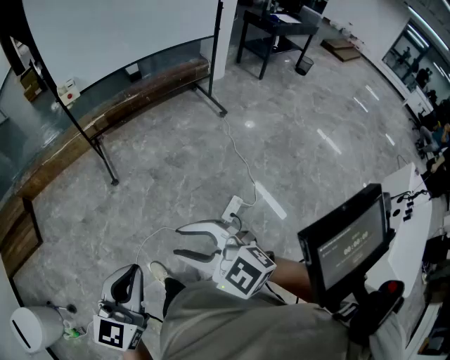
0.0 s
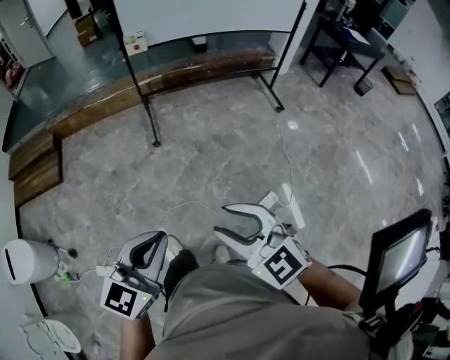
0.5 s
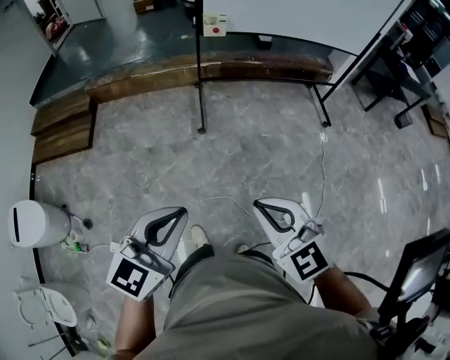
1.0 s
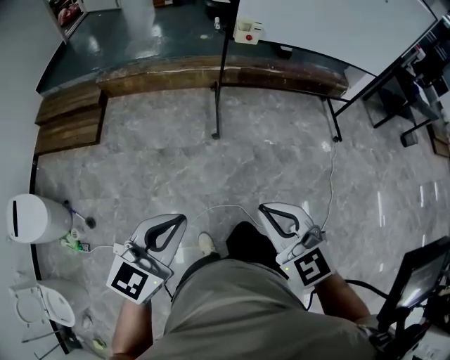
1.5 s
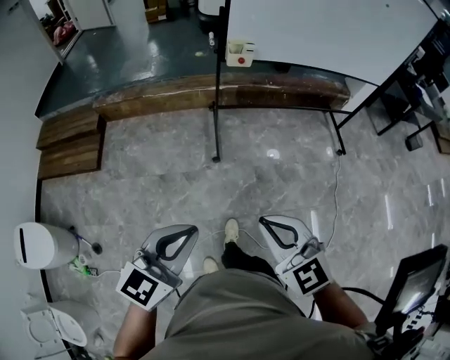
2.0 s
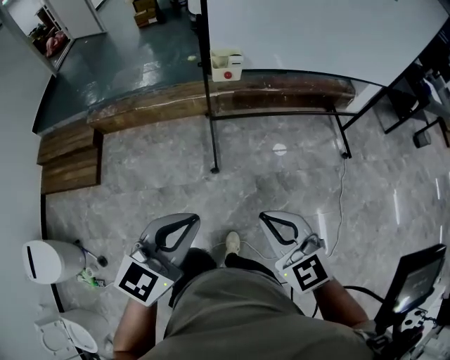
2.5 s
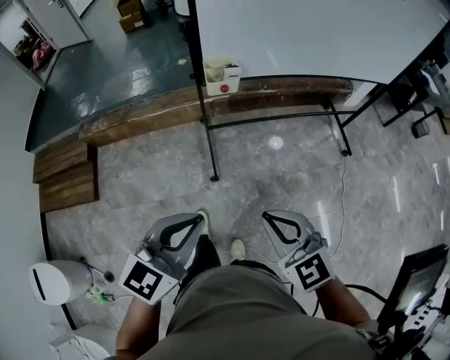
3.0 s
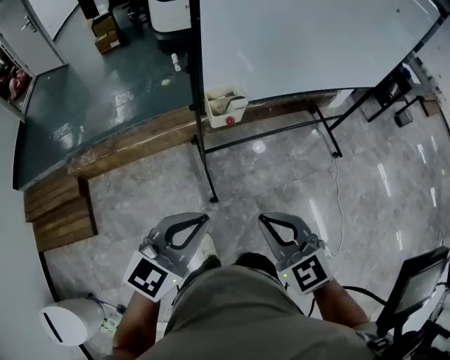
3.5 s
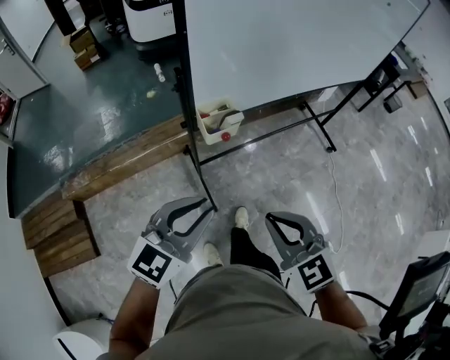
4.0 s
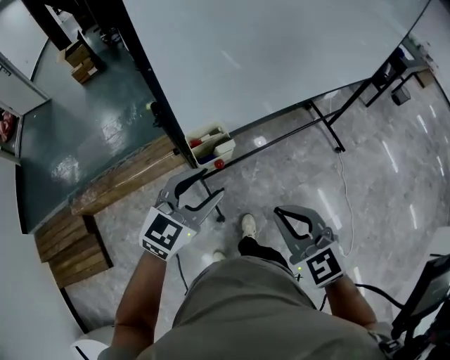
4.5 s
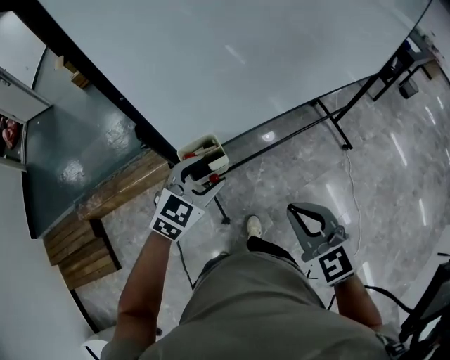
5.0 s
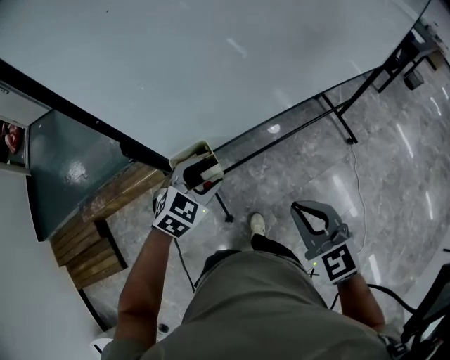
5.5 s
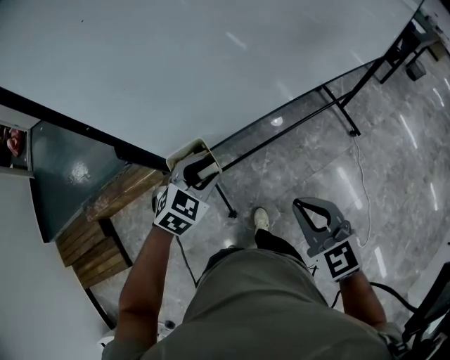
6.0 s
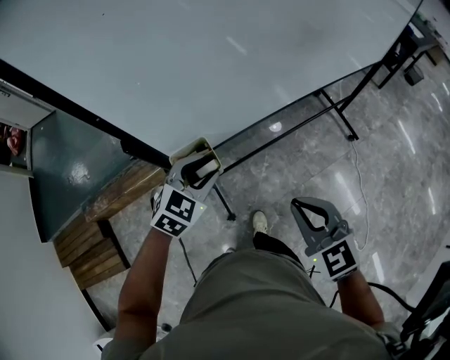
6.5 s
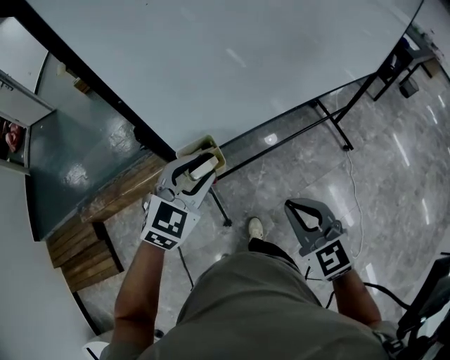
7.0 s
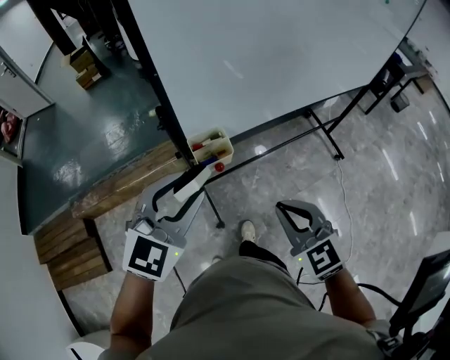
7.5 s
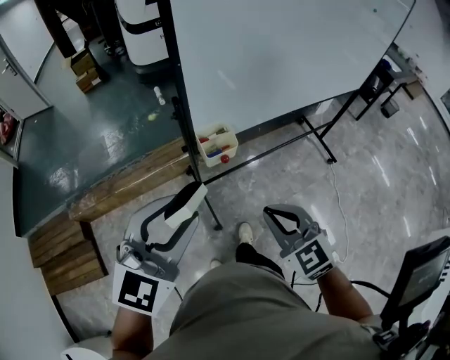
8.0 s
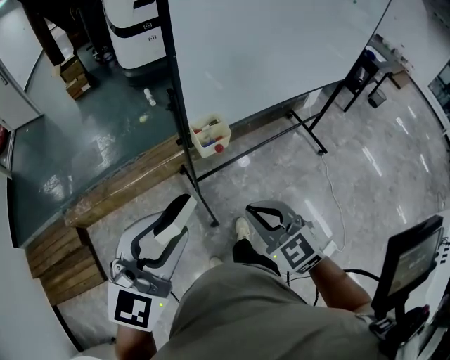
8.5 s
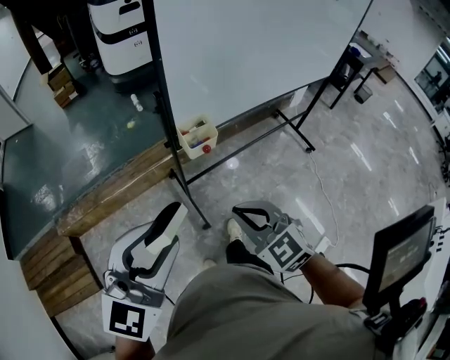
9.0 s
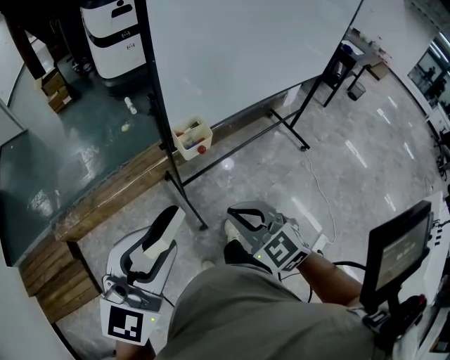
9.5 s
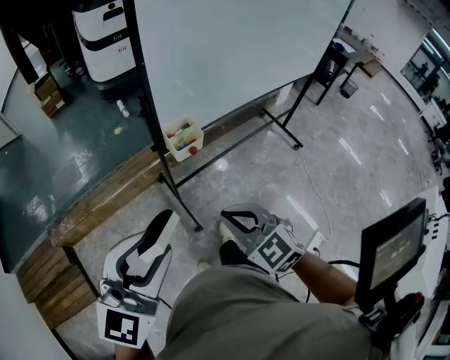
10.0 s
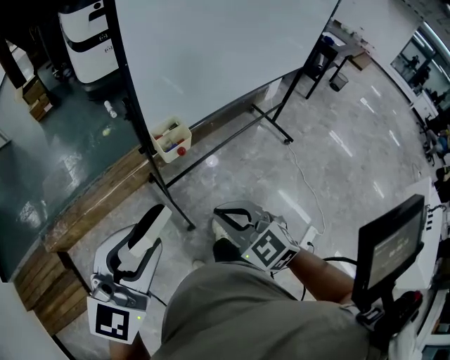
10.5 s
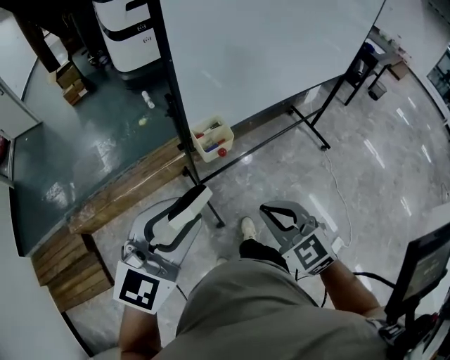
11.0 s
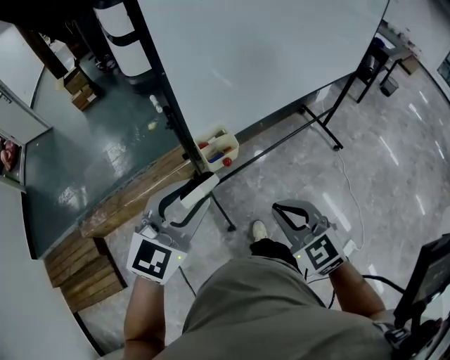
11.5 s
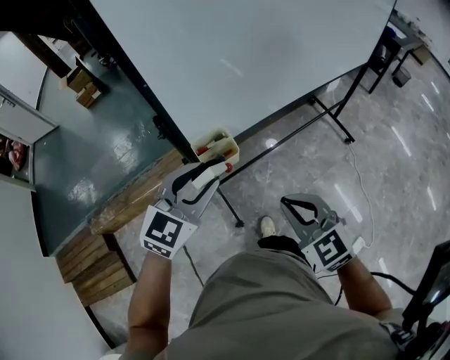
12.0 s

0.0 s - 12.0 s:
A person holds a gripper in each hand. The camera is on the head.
0.0 s - 2.0 s: Both grippers move forward and to the left, approximately 40 cm. The right gripper closes up.
2.0 s - 4.0 s: The pair of grippers is taken forward, about 50 cm. The right gripper rotates some 20 degrees, while the left gripper changes its angle by roughly 20 degrees.
4.0 s - 6.0 s: The right gripper shifts some 25 cm forward and to the right; the left gripper travels forward and downward by roughly 30 cm, tilts its fingers approximately 30 degrees downward, and opens up.
6.0 s - 8.0 s: The right gripper goes approximately 20 cm backward and to the left, while the left gripper heads backward, upward and to the left, covering about 35 cm, and angles its fingers upward, by some 30 degrees.
8.0 s - 10.0 s: The left gripper travels backward by about 10 cm. The right gripper goes roughly 10 cm backward and to the left.
10.0 s - 12.0 s: The left gripper heads forward and downward, covering roughly 25 cm. The right gripper is displaced forward and to the right by approximately 15 cm.

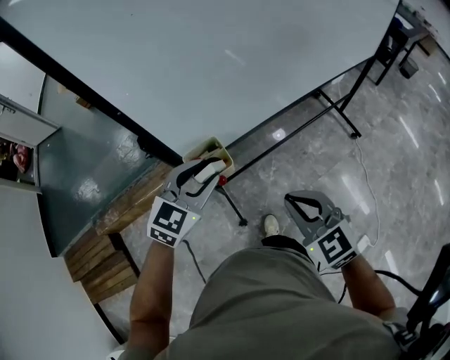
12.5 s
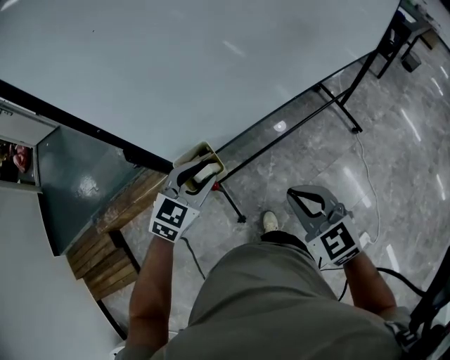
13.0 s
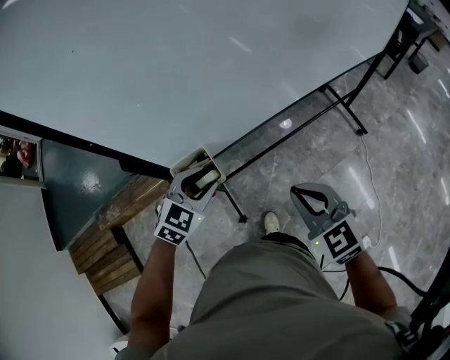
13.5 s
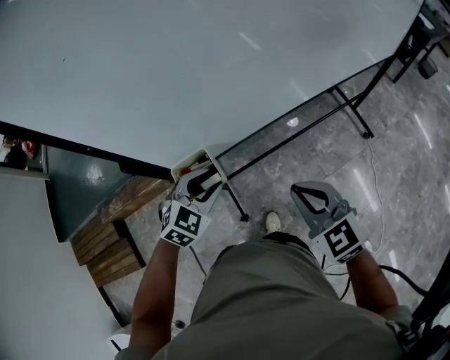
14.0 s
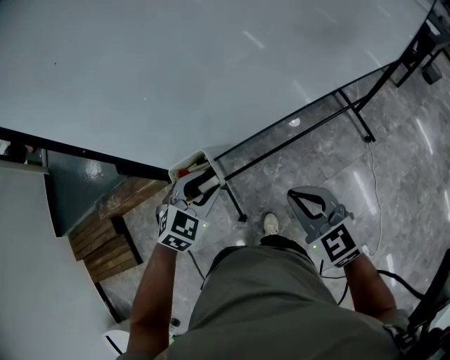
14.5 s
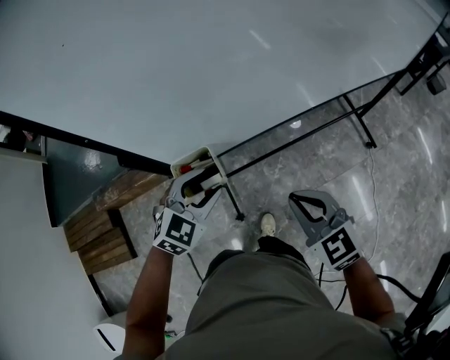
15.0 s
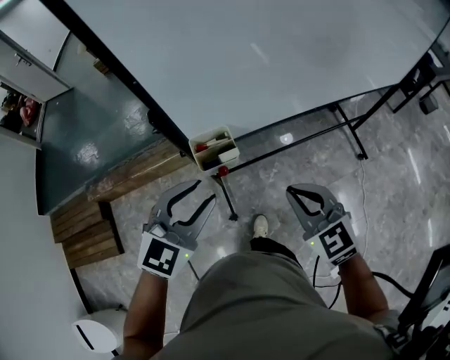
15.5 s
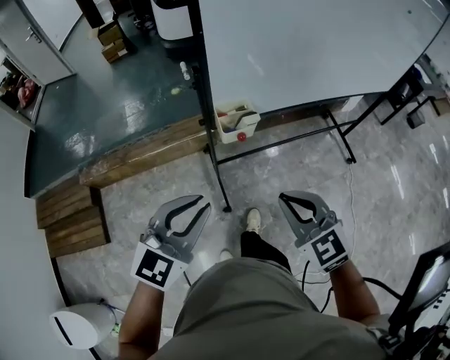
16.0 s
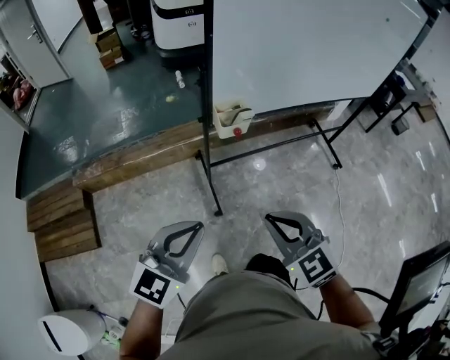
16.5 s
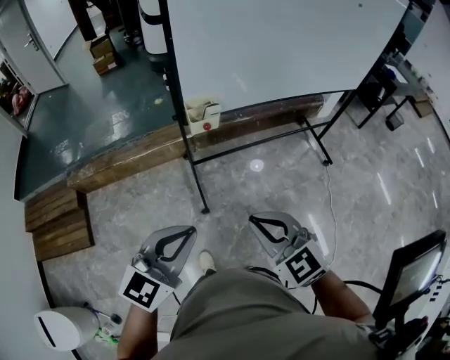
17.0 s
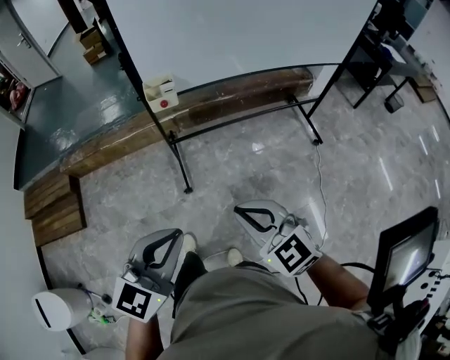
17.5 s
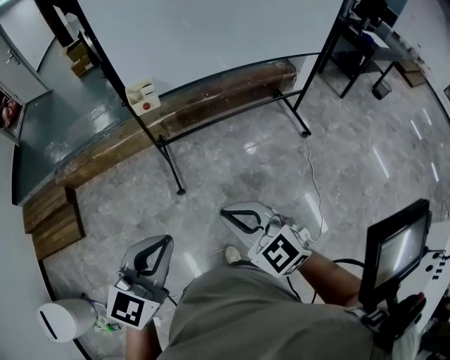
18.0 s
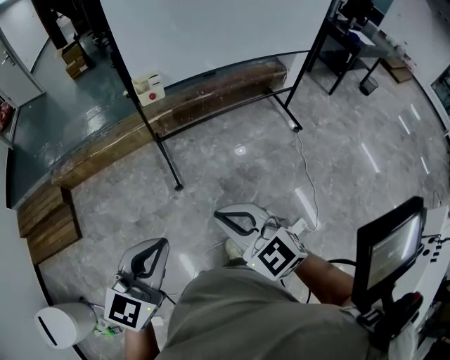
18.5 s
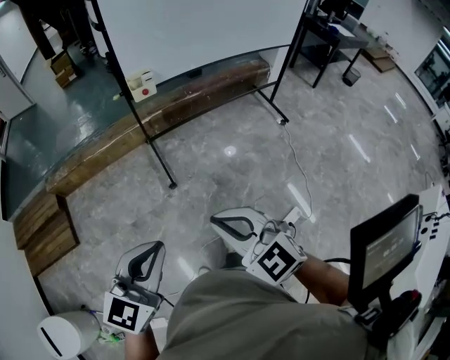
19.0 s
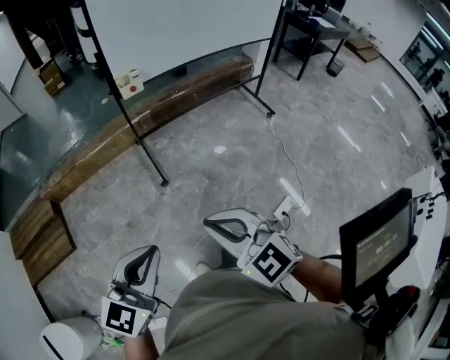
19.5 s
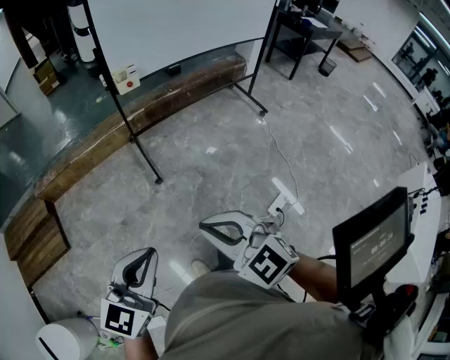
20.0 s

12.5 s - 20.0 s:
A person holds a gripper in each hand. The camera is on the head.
12.5 s - 14.5 s: The left gripper is displaced downward by about 10 cm. The right gripper travels forward and to the right by some 10 cm.
14.5 s - 16.5 s: The grippers both shift backward and to the left by approximately 40 cm. The left gripper points its fingers some 30 degrees further upward, and closes.
16.5 s - 18.0 s: The grippers both shift to the right and backward by approximately 30 cm.
18.0 s - 20.0 s: The two grippers go roughly 30 cm backward and to the left.

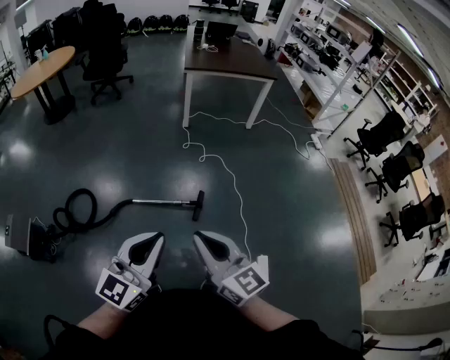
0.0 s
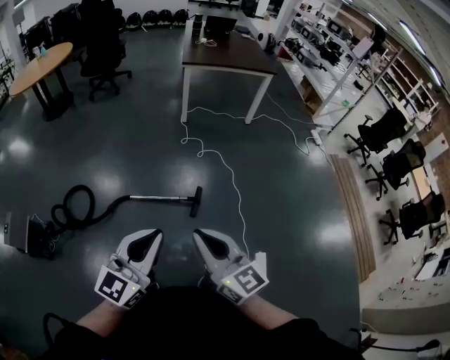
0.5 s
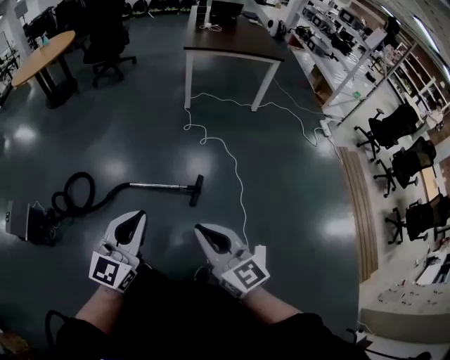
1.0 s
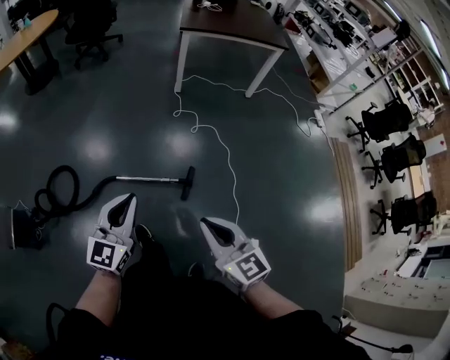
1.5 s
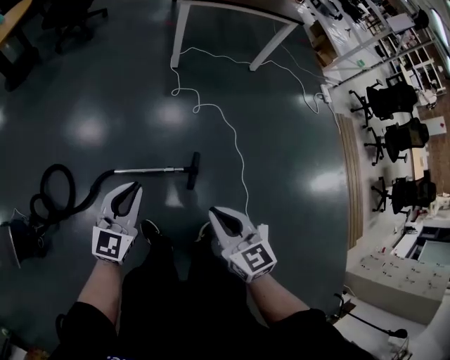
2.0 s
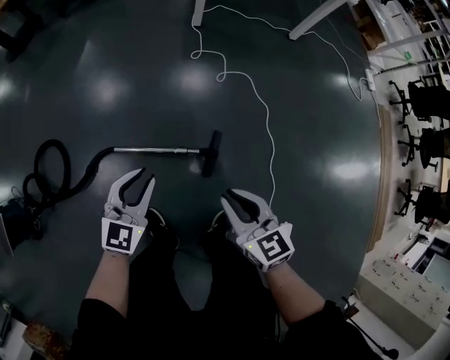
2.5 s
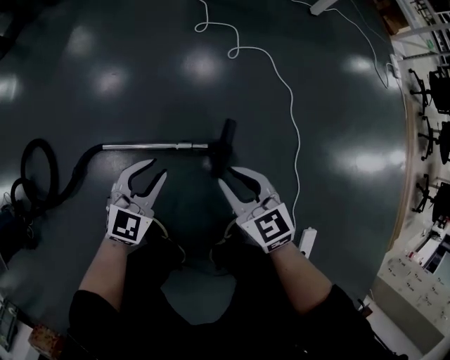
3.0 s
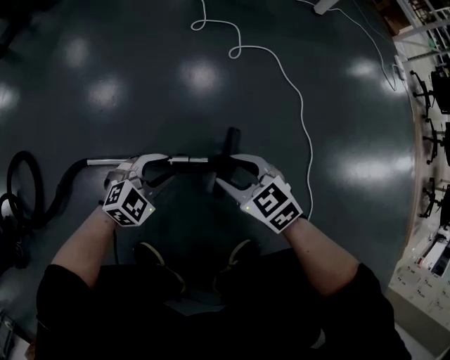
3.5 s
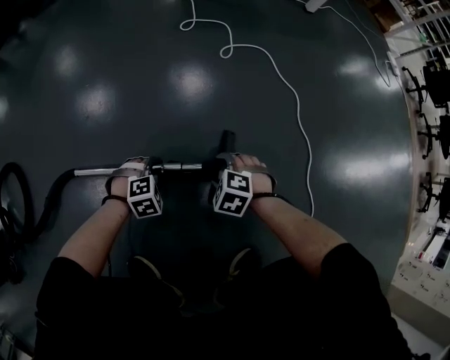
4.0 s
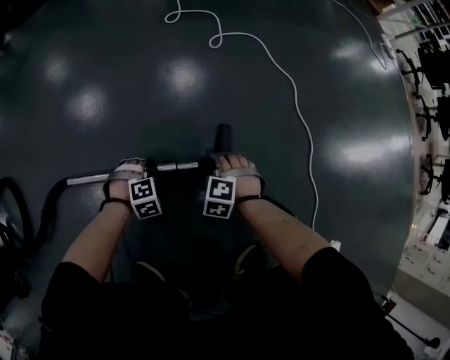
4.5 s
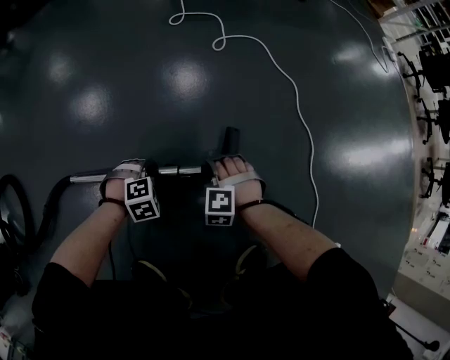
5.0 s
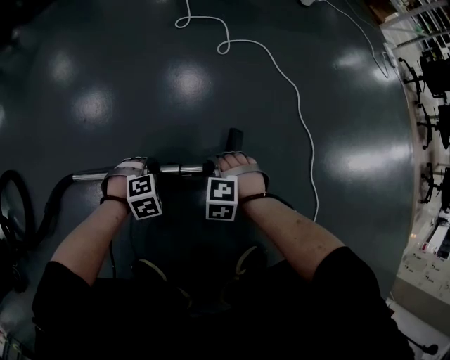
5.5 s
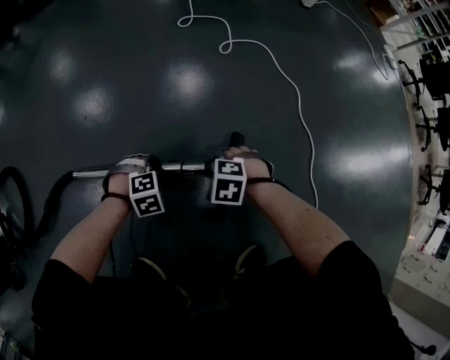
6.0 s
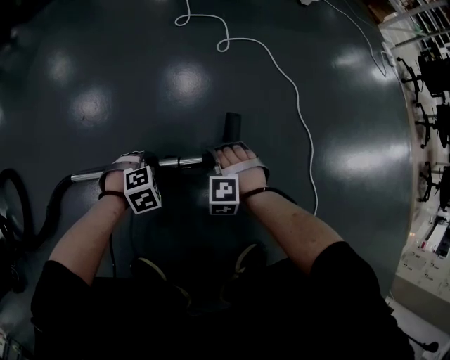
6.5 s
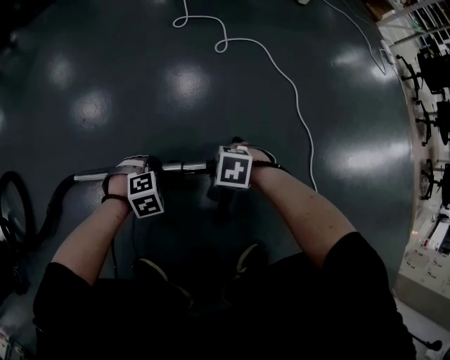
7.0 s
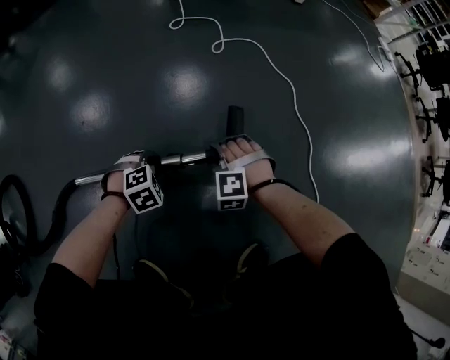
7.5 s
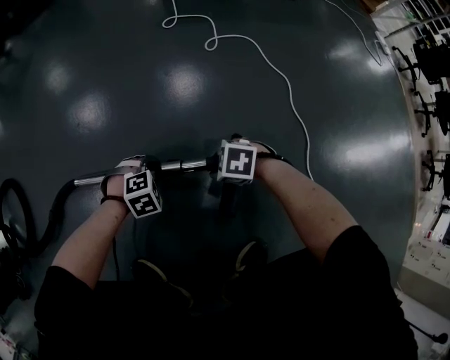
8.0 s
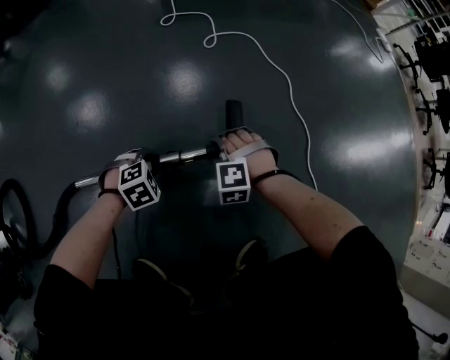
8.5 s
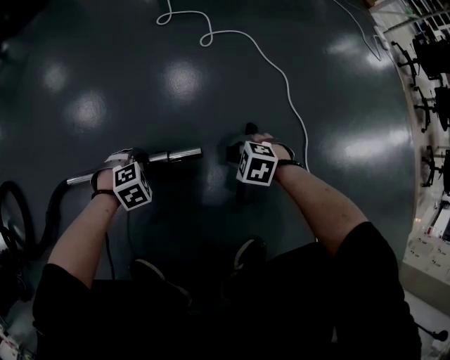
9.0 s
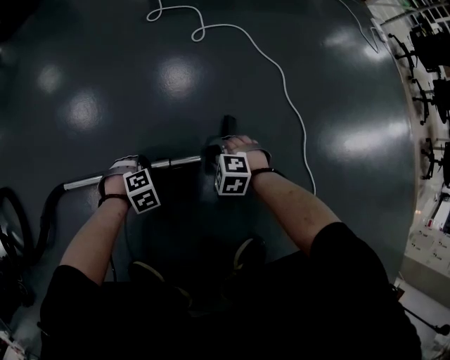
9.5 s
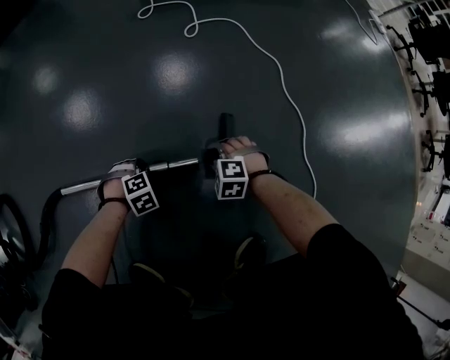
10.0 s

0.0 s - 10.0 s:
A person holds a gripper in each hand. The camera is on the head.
0.0 s - 2.0 s: Both grippers travel together forward and downward, approximately 35 cm. The right gripper swivels approximately 20 degrees. The left gripper turns by roughly 20 degrees.
2.0 s - 4.0 s: The two grippers go about 70 cm downward. The left gripper angles its fingers downward, by roughly 60 degrees, and opens up. Meanwhile the right gripper angles its fingers downward, by approximately 50 degrees, and opens up.
8.0 s - 10.0 s: The two grippers go some 10 cm downward. The right gripper turns by some 30 degrees.
